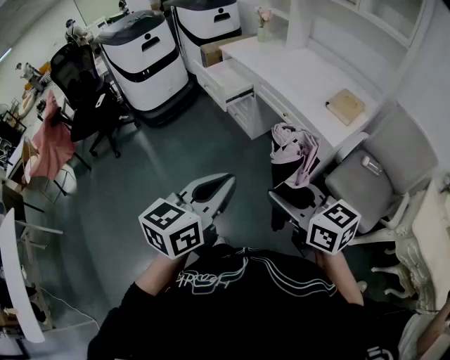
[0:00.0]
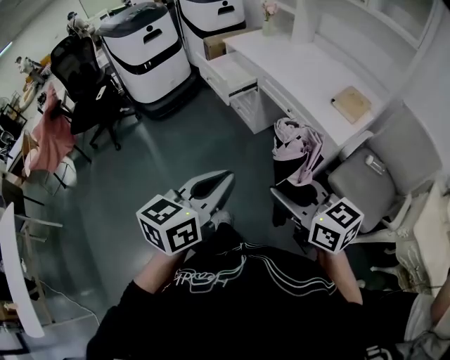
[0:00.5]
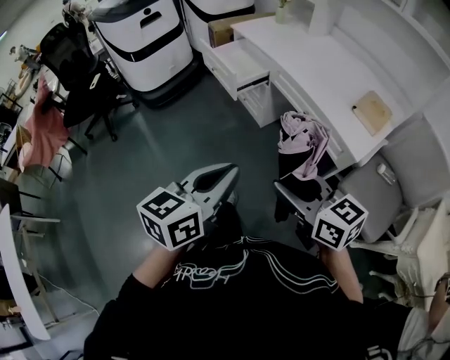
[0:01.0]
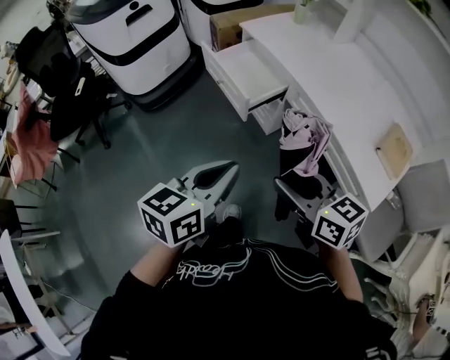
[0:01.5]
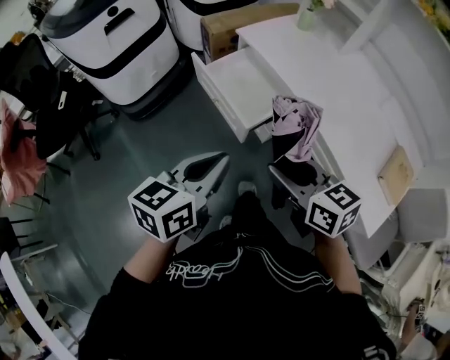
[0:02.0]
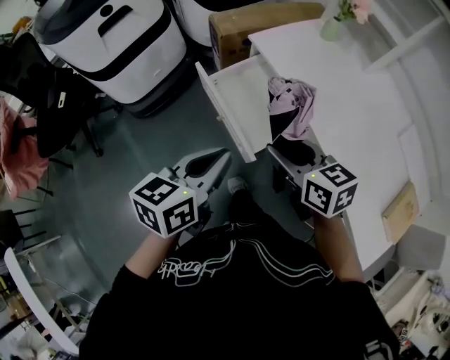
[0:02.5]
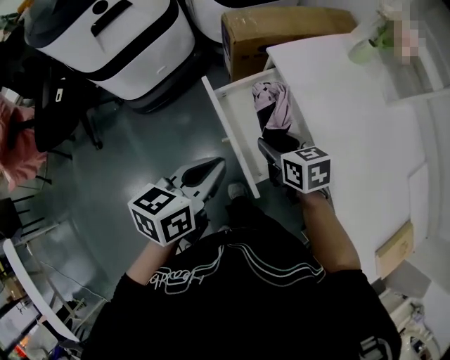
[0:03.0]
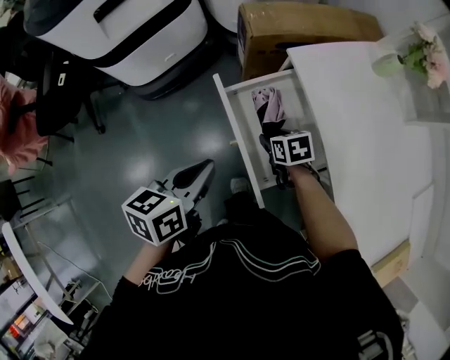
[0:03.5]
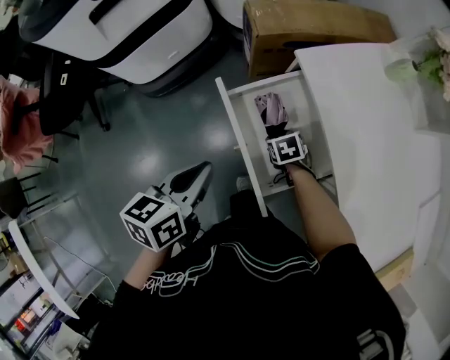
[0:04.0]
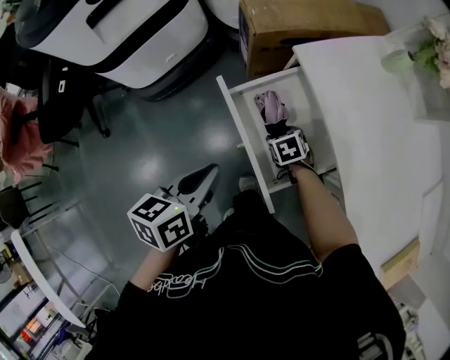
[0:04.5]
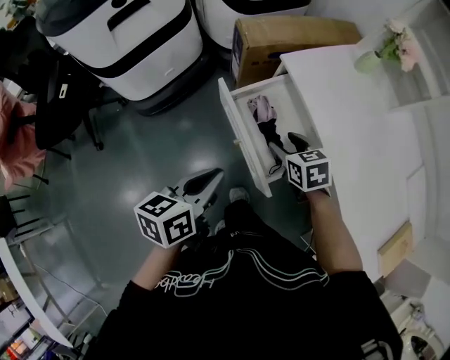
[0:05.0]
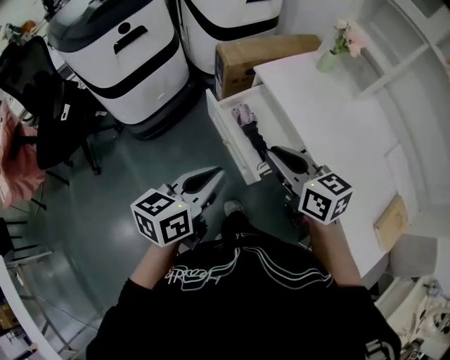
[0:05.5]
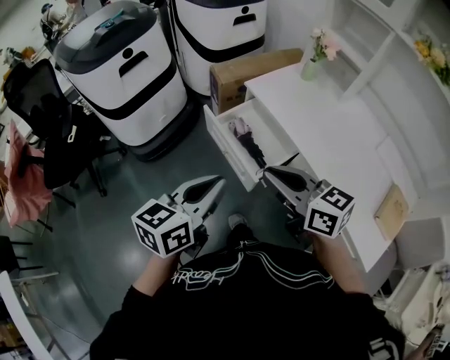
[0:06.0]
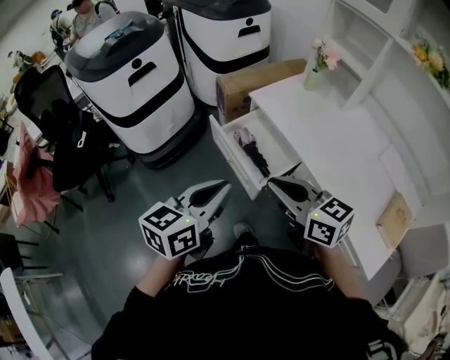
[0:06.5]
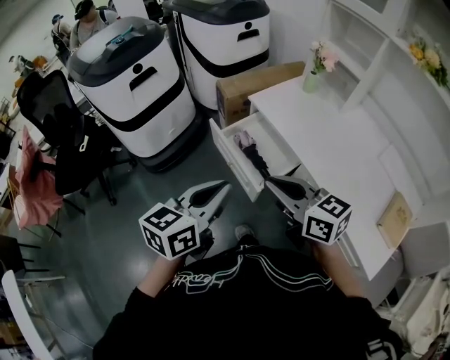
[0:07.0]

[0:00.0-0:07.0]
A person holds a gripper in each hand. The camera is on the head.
0:00.0 to 0:02.0: The pair of grippers is taken forward, some 70 cm.
0:02.0 to 0:03.5: The left gripper goes roughly 35 cm forward and downward, and swivels about 30 degrees; the right gripper moves forward and downward, approximately 50 cm, and tips its fingers downward by about 30 degrees.
0:03.5 to 0:05.0: The right gripper heads upward and backward, covering approximately 15 cm. Meanwhile the left gripper is displaced backward by some 5 cm.
0:05.0 to 0:07.0: The left gripper heads upward and backward, covering about 25 cm, and turns by roughly 30 degrees; the right gripper moves upward and backward, approximately 40 cm, tips its fingers upward by approximately 40 degrees, and closes its fingers.

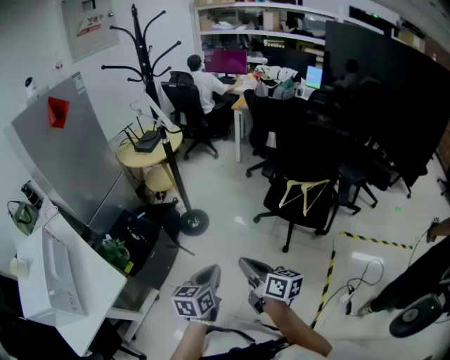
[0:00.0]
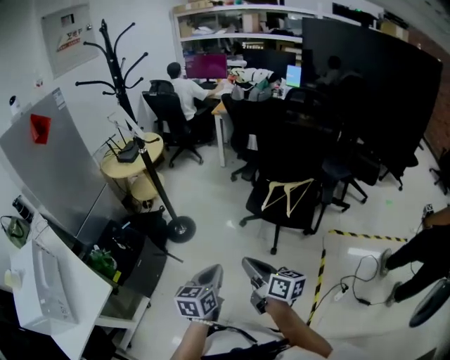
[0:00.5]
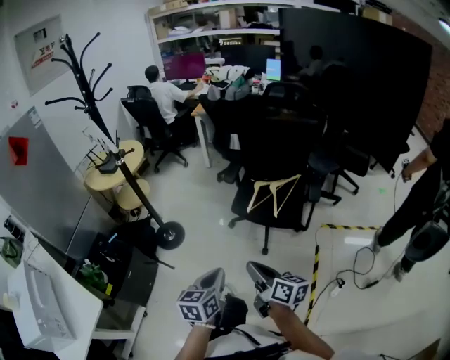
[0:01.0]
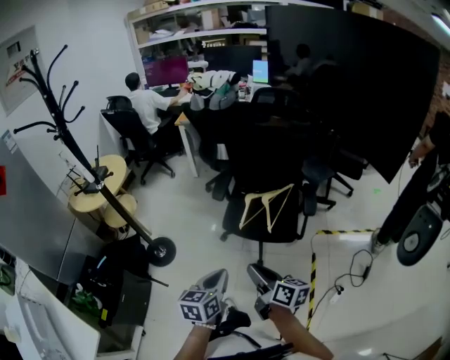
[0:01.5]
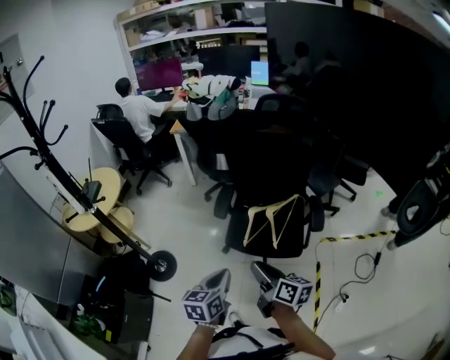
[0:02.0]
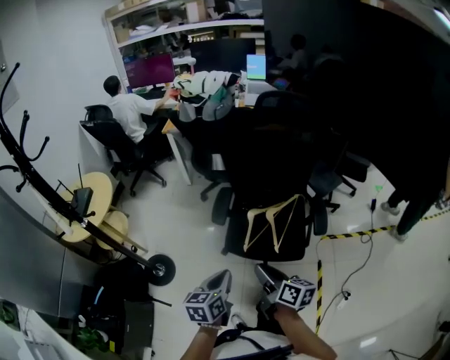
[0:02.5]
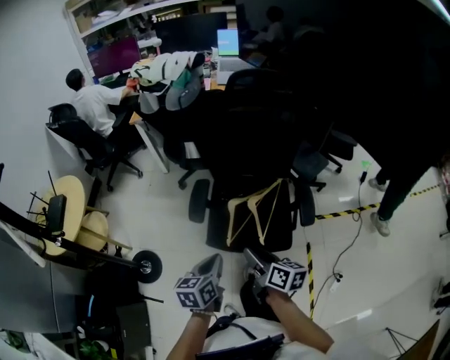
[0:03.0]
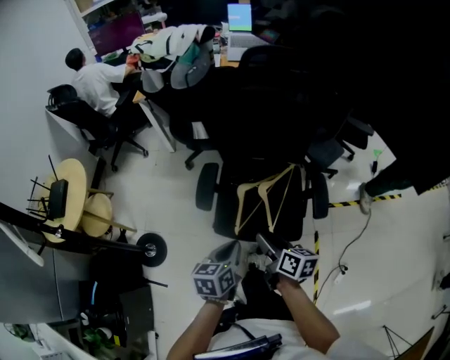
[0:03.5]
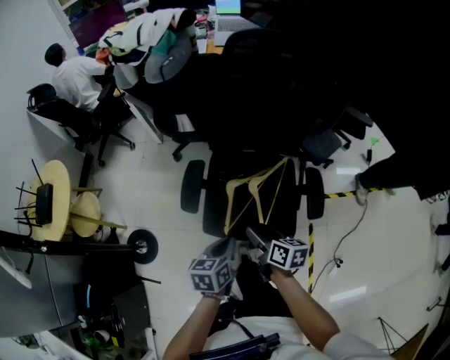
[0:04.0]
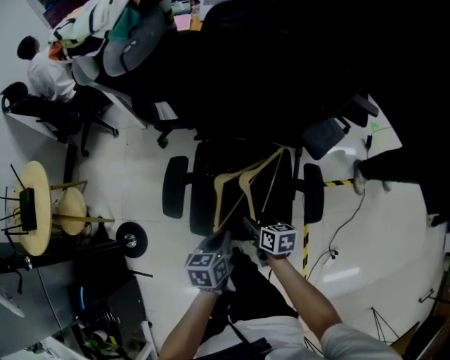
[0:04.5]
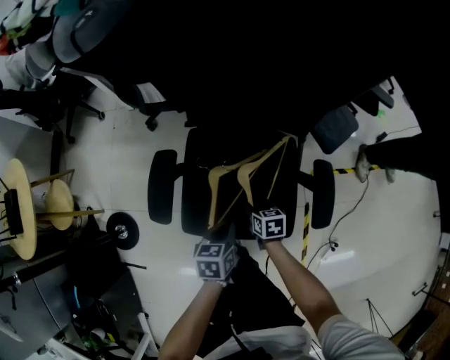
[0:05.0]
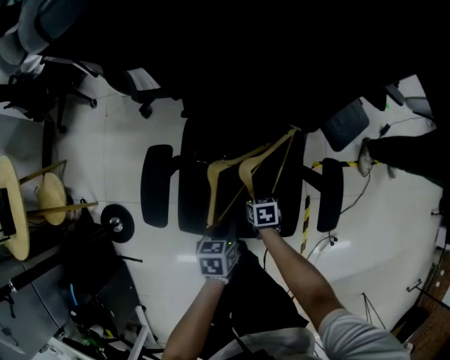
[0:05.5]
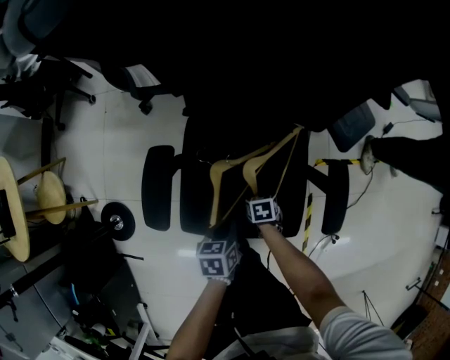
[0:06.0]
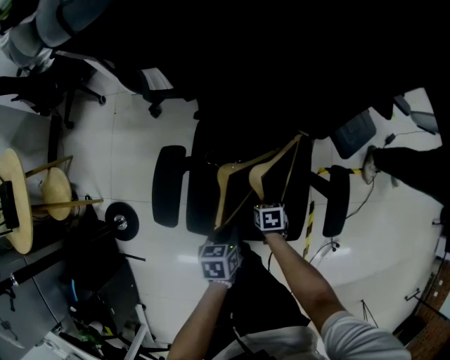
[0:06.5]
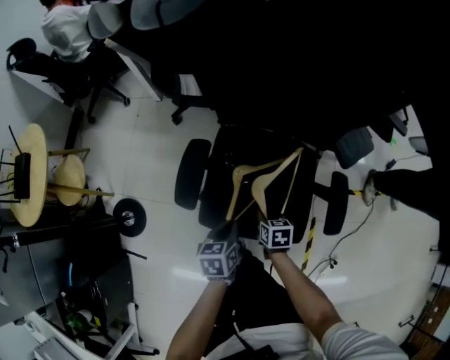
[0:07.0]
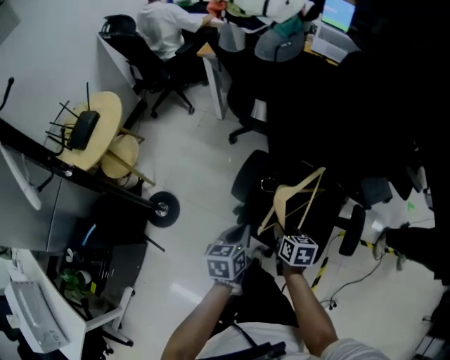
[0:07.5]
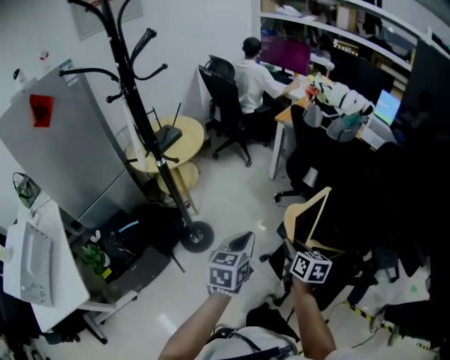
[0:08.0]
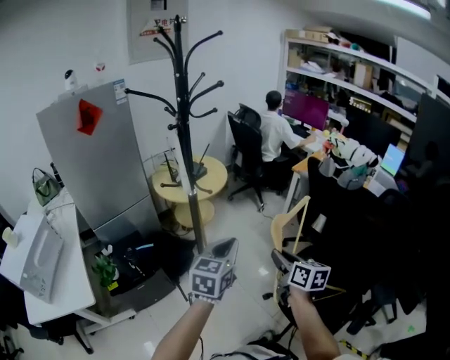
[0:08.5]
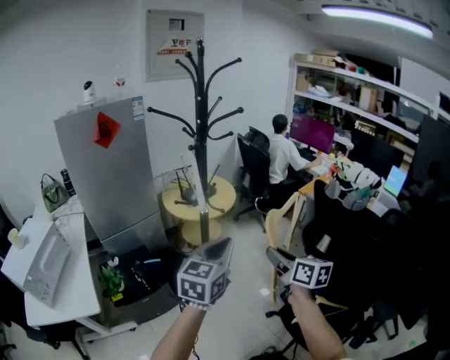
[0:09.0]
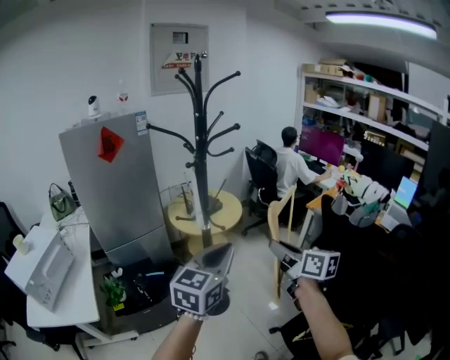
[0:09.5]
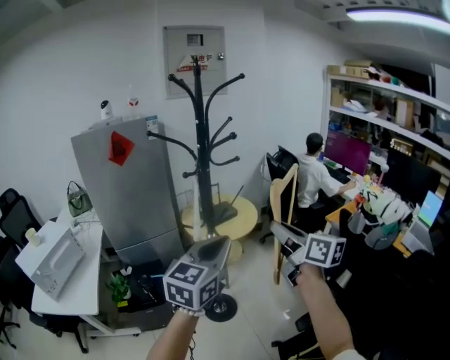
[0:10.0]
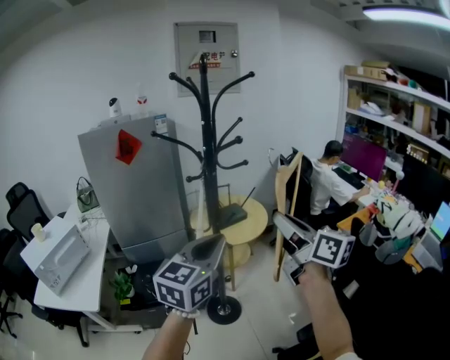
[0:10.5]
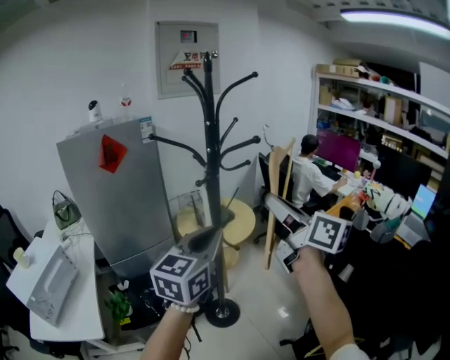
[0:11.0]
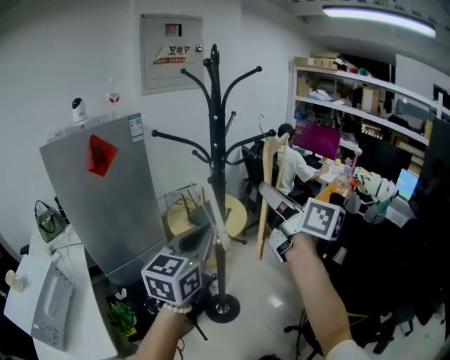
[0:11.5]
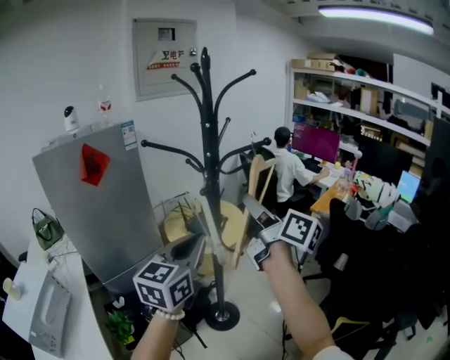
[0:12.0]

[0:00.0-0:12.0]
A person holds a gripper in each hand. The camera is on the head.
0:00.0 to 0:02.0: Both grippers travel together forward and to the right, about 40 cm. The right gripper swivels approximately 20 degrees, and opens.
0:02.0 to 0:04.0: The grippers both shift forward and downward by about 30 cm. The right gripper swivels about 20 degrees, and opens.
0:04.0 to 0:06.0: Both grippers travel together downward and forward, roughly 35 cm. The right gripper angles its fingers downward, by about 40 degrees, and closes up.
0:06.0 to 0:08.0: Both grippers travel together upward, some 50 cm. The left gripper swivels about 50 degrees, while the right gripper tilts its fingers some 40 degrees upward.
0:08.0 to 0:10.0: The two grippers go about 35 cm upward. The left gripper turns by roughly 30 degrees; the right gripper points its fingers about 30 degrees further upward.
0:10.0 to 0:12.0: The right gripper heads to the left, forward and upward, covering some 20 cm, and turns by about 20 degrees; the left gripper goes roughly 20 cm to the left and forward.

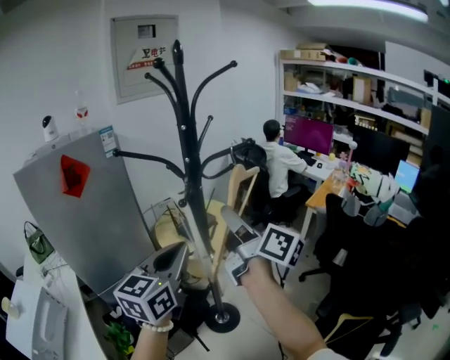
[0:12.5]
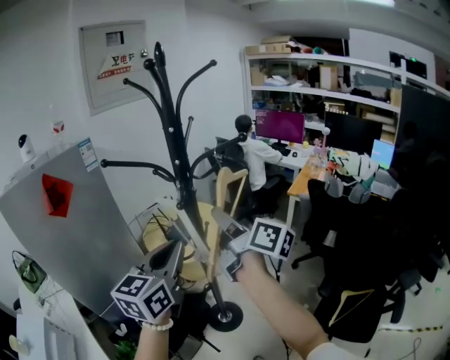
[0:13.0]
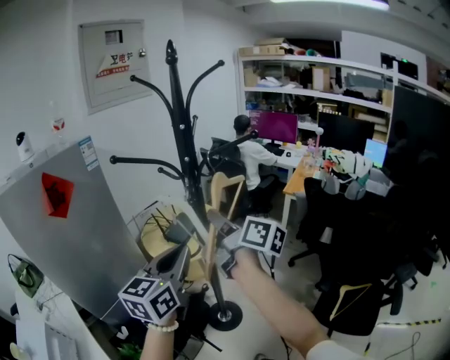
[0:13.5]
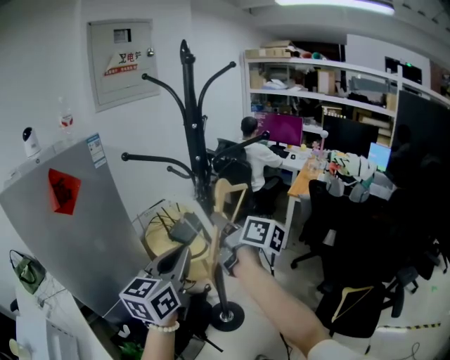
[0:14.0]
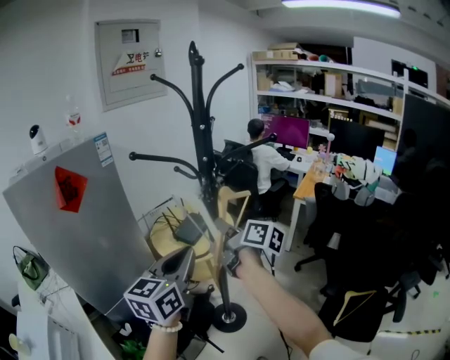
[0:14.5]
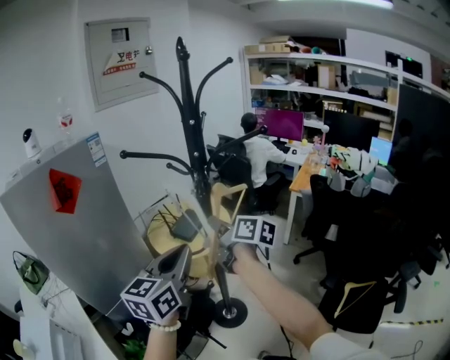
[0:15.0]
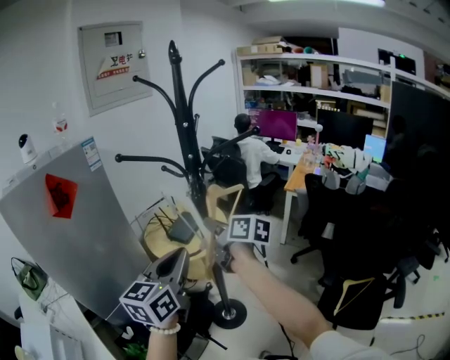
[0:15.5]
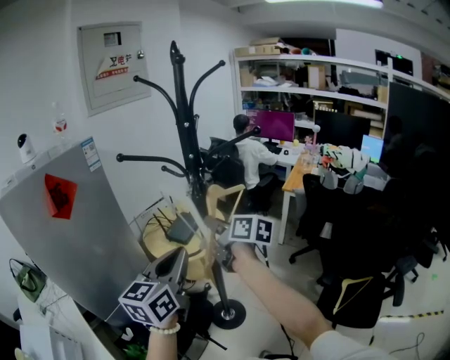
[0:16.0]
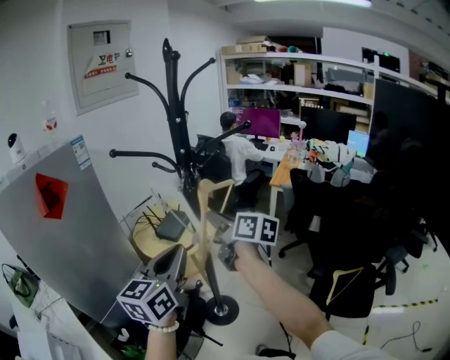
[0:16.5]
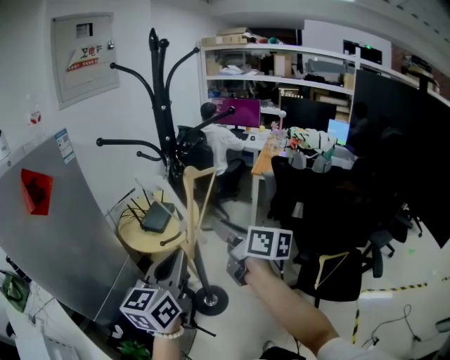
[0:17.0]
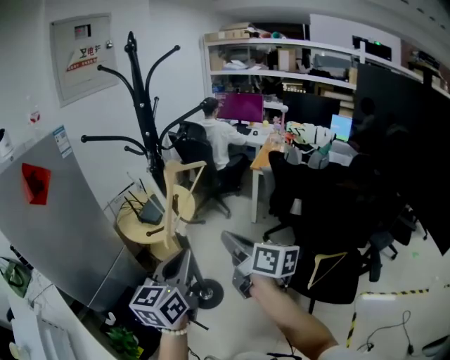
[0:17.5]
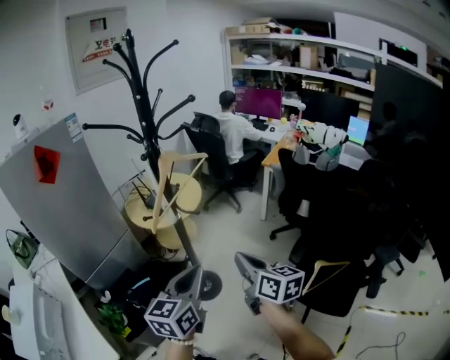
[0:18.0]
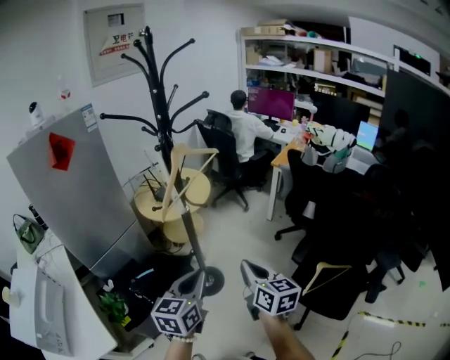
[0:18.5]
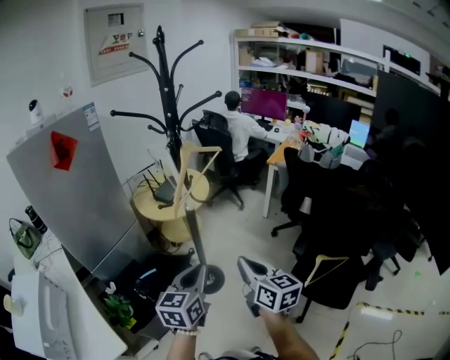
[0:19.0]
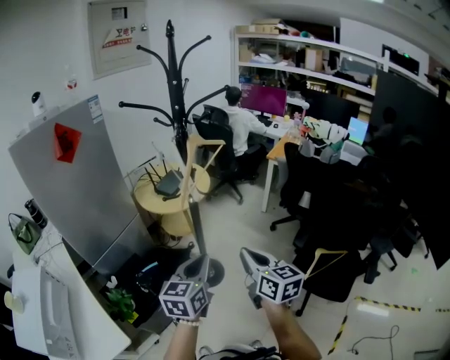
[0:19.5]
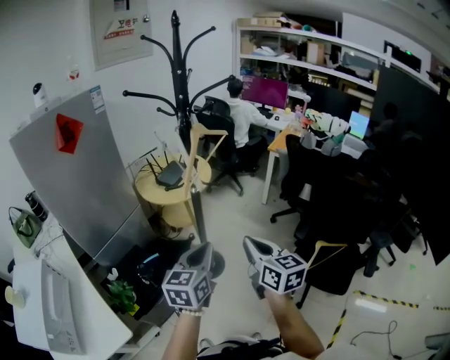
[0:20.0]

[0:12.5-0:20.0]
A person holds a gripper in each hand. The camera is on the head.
0:12.5 to 0:14.5: The left gripper moves to the left, some 5 cm. Meanwhile the right gripper moves downward and to the left, roughly 15 cm.
0:14.5 to 0:16.5: The grippers stay close to where they were, moving slightly.
0:16.5 to 0:18.0: The right gripper travels backward, to the right and downward by about 30 cm, and closes up. Meanwhile the left gripper moves to the right, backward and downward, about 25 cm.
0:18.0 to 0:20.0: The left gripper goes some 10 cm to the left, while the right gripper is displaced to the left and backward by approximately 10 cm.
